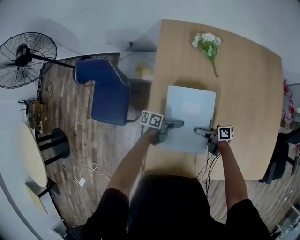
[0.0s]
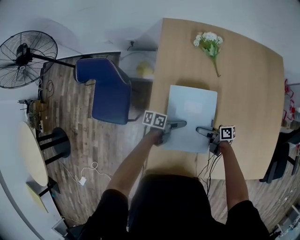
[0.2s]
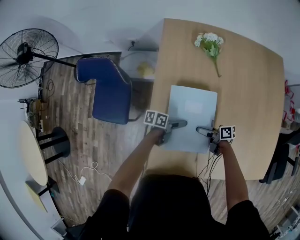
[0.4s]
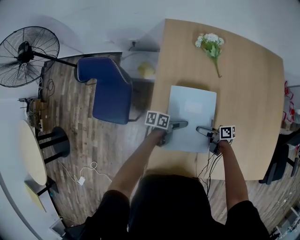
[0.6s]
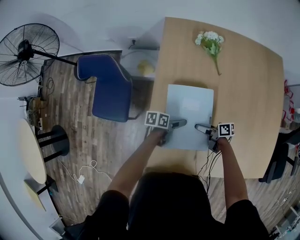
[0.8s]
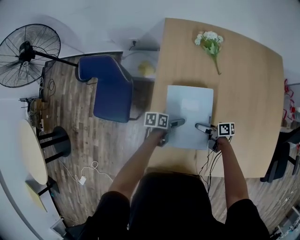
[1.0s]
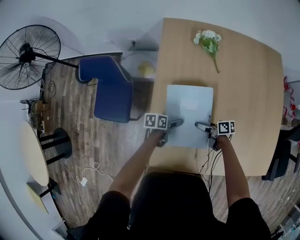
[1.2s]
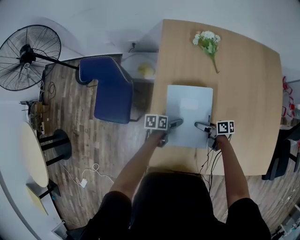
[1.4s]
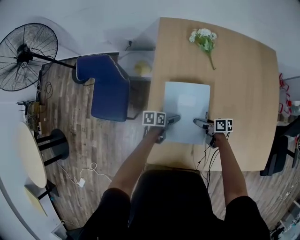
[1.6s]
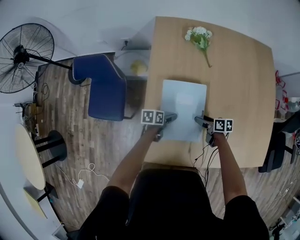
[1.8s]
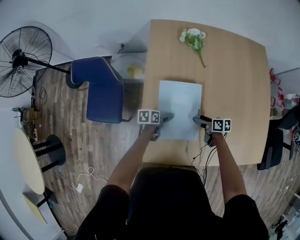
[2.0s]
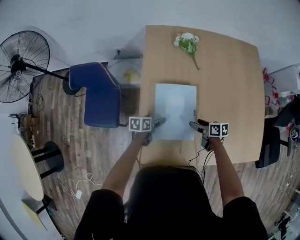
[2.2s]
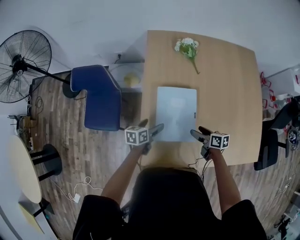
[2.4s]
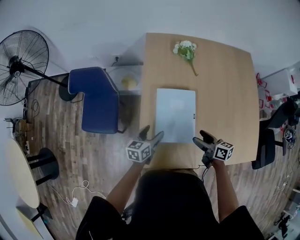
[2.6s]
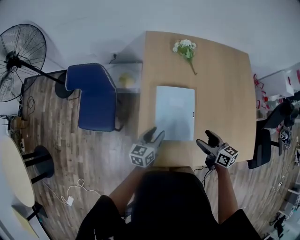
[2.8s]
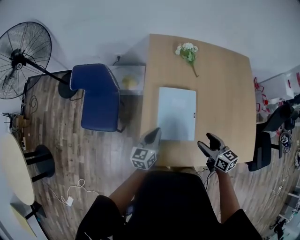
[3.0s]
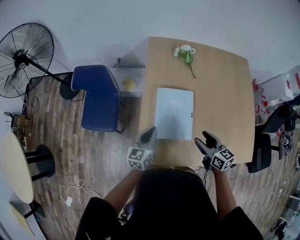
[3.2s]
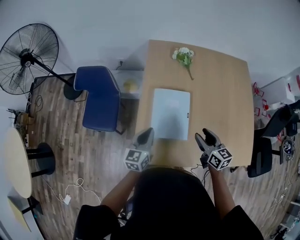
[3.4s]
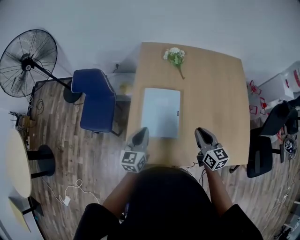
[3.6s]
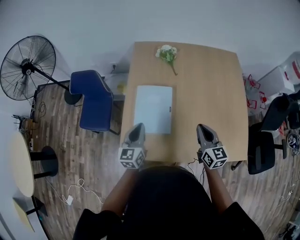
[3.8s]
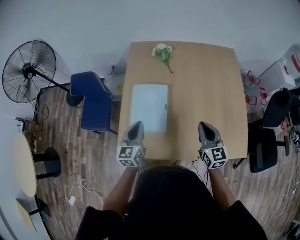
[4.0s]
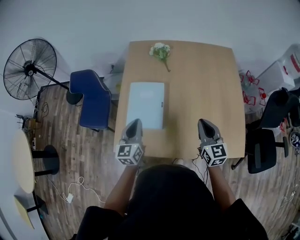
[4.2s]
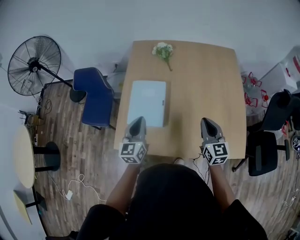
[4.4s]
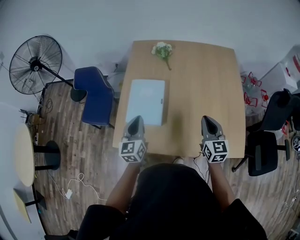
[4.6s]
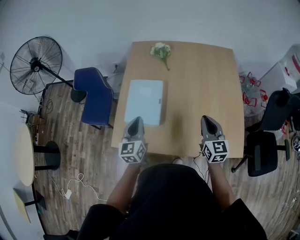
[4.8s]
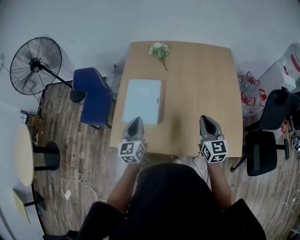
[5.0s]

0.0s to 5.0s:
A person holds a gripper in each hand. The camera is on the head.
0.0s to 1.6s: The right gripper turns by about 20 degrees; the left gripper ends up about 5 cm from where it was, and rotates approximately 30 degrees.
1.6s to 3.4s: The two grippers go roughly 25 cm upward. The right gripper changes its angle by roughly 50 degrees, and closes its fingers, while the left gripper rotates approximately 60 degrees, and closes its fingers.
3.4s to 5.0s: The left gripper moves to the right and backward, roughly 25 cm. The right gripper is displaced to the right by roughly 25 cm, turns by some 20 degrees, and closes up.

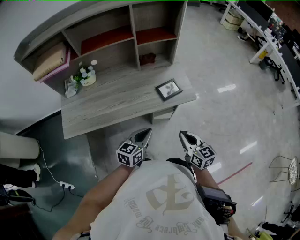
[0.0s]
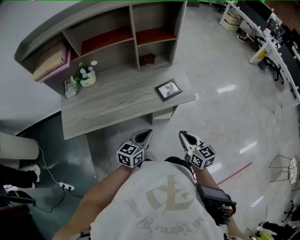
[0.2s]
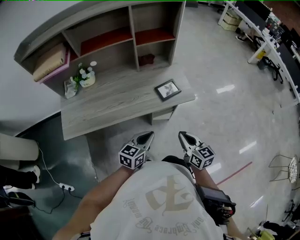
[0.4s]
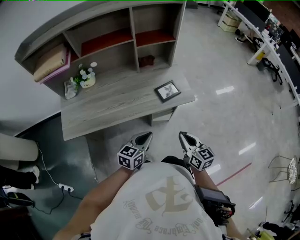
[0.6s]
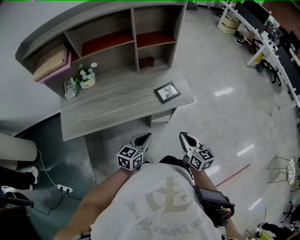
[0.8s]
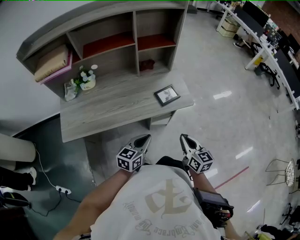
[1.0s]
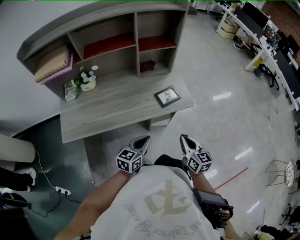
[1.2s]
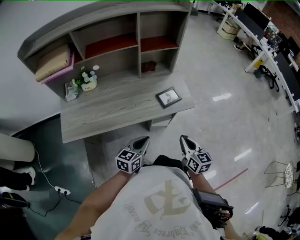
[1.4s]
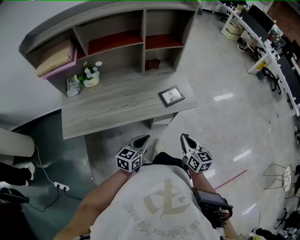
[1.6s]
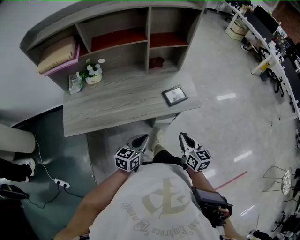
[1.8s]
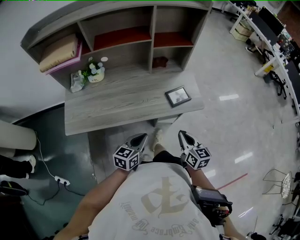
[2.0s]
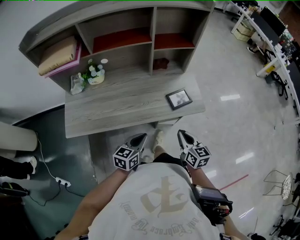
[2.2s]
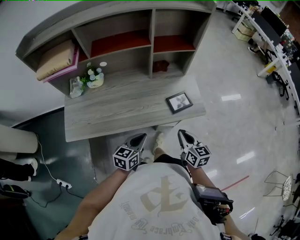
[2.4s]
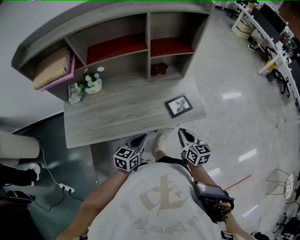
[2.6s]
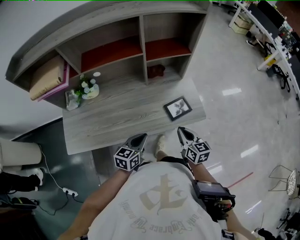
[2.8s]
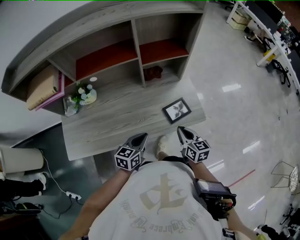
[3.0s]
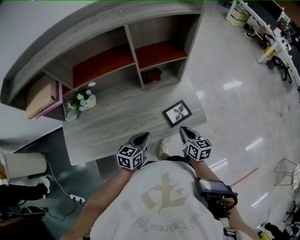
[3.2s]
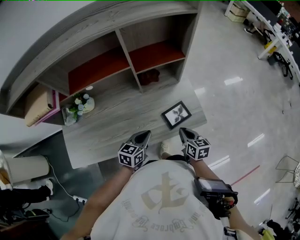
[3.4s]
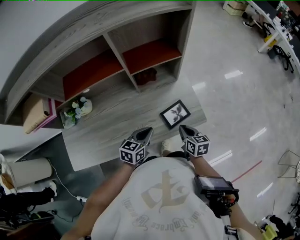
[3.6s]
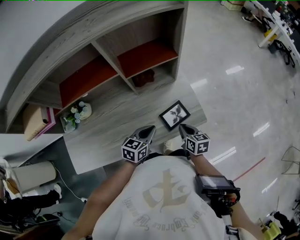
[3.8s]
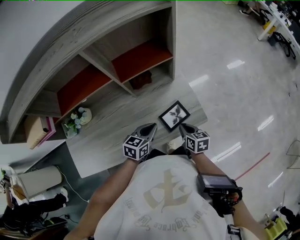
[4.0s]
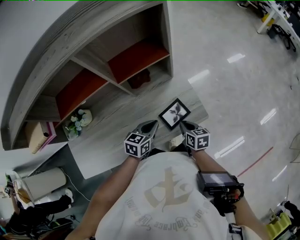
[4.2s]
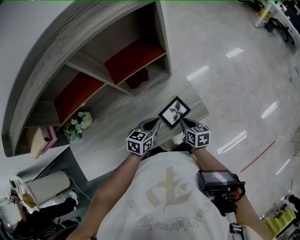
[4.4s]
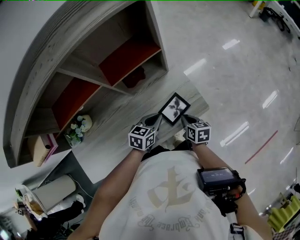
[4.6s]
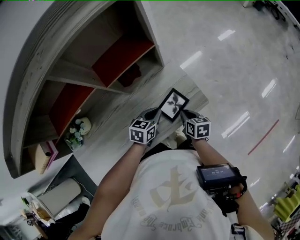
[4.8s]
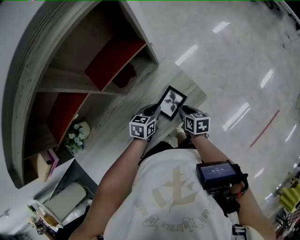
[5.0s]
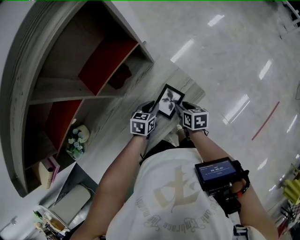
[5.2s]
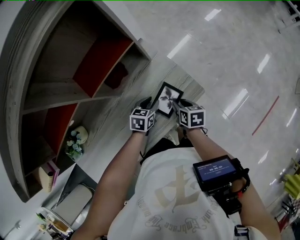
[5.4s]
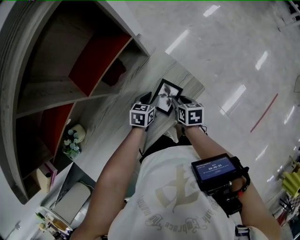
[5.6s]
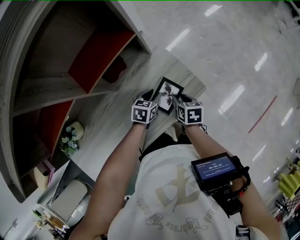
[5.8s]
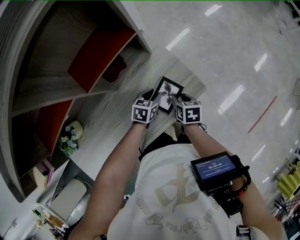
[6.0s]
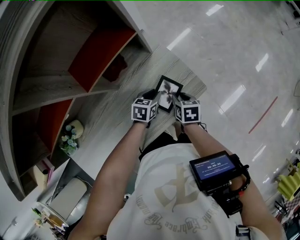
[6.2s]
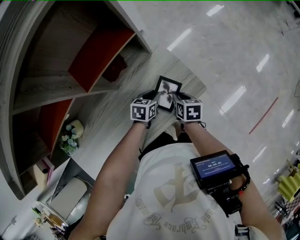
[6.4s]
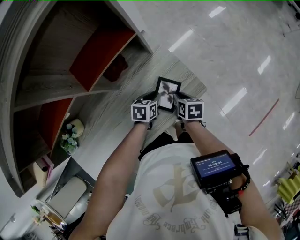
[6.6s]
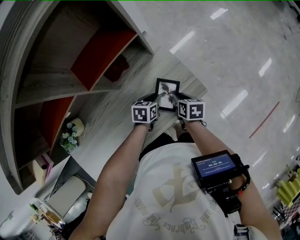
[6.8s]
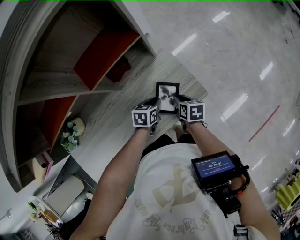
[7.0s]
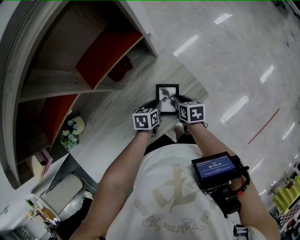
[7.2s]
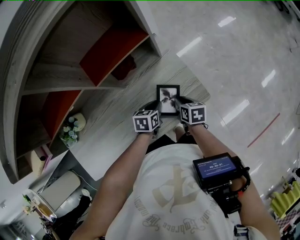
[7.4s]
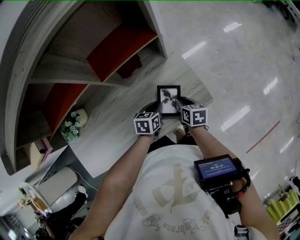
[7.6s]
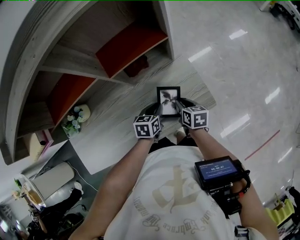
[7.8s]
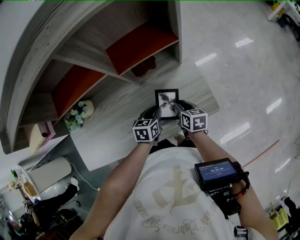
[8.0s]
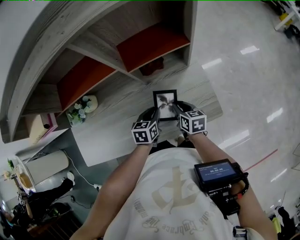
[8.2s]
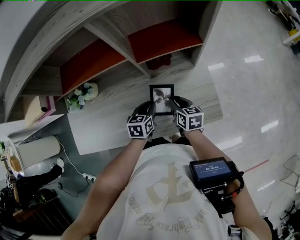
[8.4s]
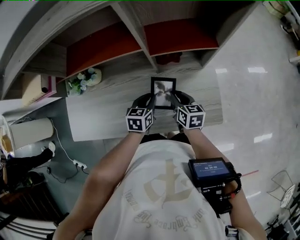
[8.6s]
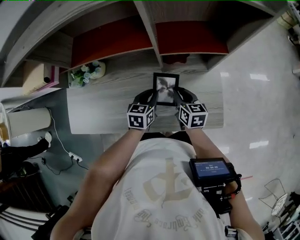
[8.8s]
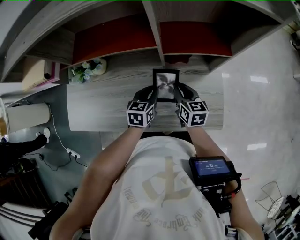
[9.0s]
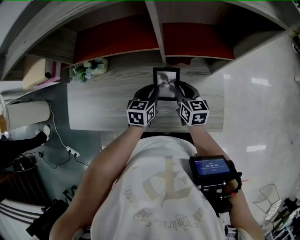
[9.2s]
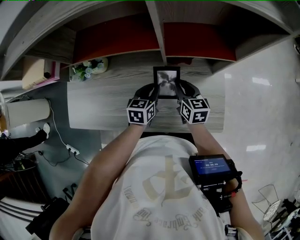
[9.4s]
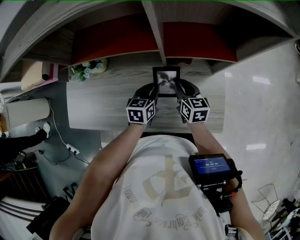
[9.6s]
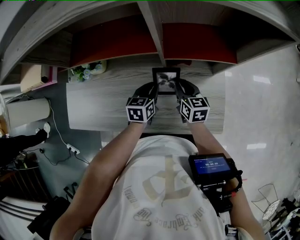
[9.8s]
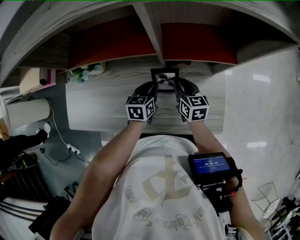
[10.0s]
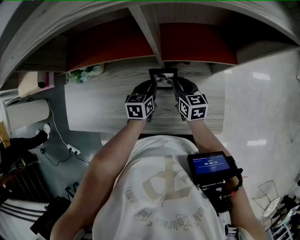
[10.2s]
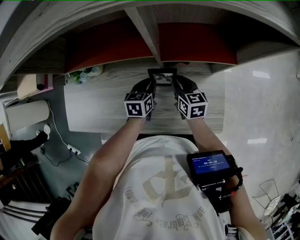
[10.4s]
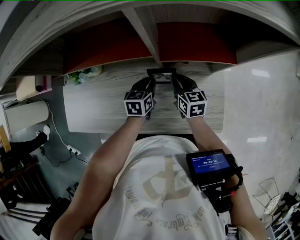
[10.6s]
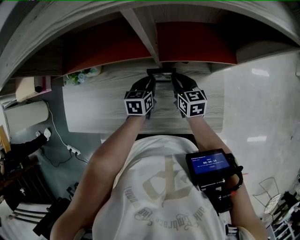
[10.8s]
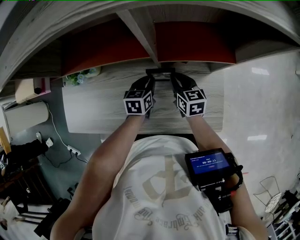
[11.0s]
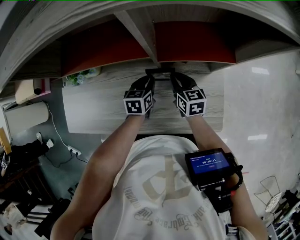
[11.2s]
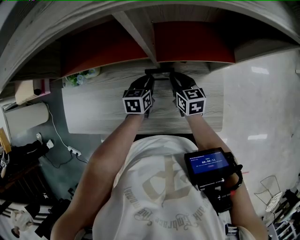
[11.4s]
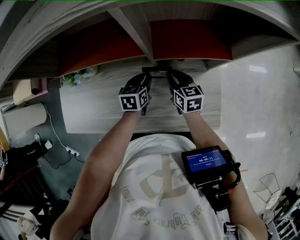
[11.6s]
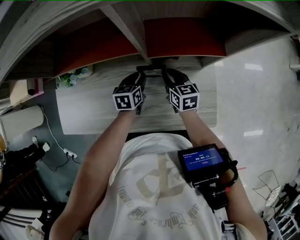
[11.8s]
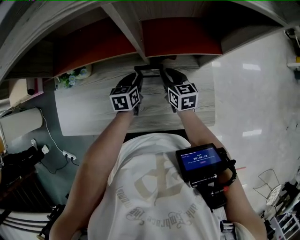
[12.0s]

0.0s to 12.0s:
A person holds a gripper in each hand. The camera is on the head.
0.0s to 1.6s: The grippers stay close to where they were, moving slightly.
1.6s to 3.0s: The grippers both shift forward by roughly 20 cm.
3.0s to 4.4s: The left gripper moves forward and to the right, approximately 20 cm. Meanwhile the right gripper goes some 15 cm downward, forward and to the right, and turns by roughly 20 degrees.
4.4s to 6.0s: The right gripper shifts approximately 5 cm downward, rotates roughly 20 degrees, and opens. The left gripper heads downward and forward, covering roughly 15 cm, rotates approximately 20 degrees, and opens its fingers.
6.0s to 7.6s: The left gripper moves roughly 5 cm, and rotates about 20 degrees.
7.6s to 9.0s: The left gripper shifts by roughly 20 cm, and changes its angle by approximately 30 degrees. The right gripper changes place by roughly 20 cm, and swivels roughly 40 degrees.
9.0s to 10.4s: Both grippers travel together forward, approximately 5 cm.
10.4s to 12.0s: There are only small adjustments of the grippers.

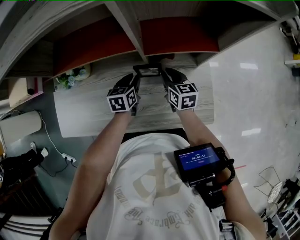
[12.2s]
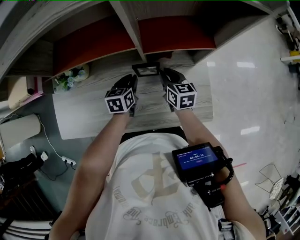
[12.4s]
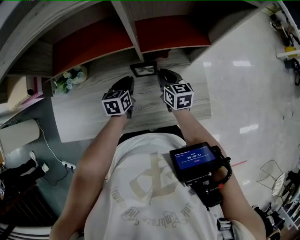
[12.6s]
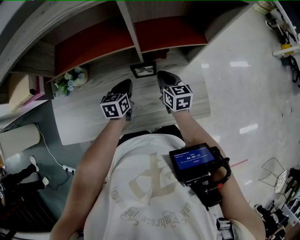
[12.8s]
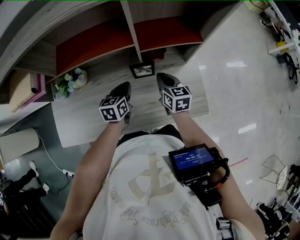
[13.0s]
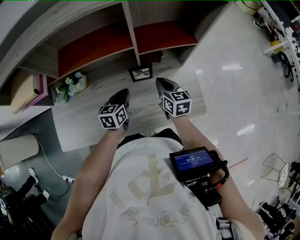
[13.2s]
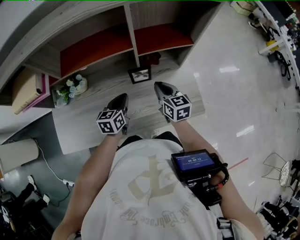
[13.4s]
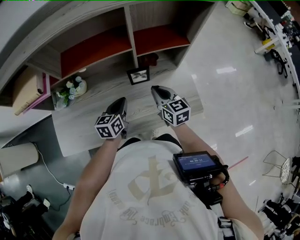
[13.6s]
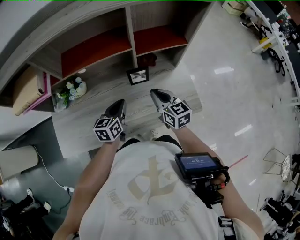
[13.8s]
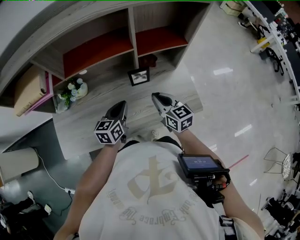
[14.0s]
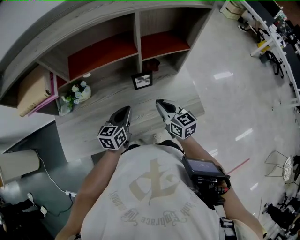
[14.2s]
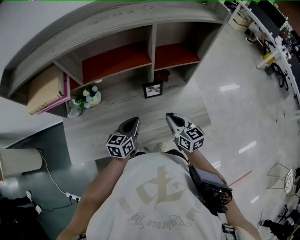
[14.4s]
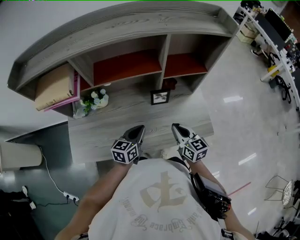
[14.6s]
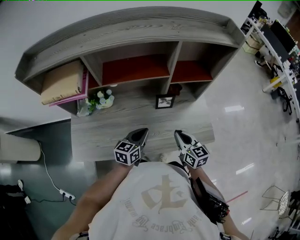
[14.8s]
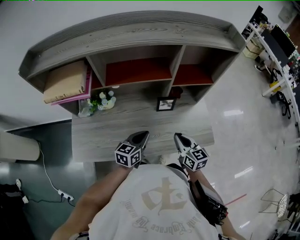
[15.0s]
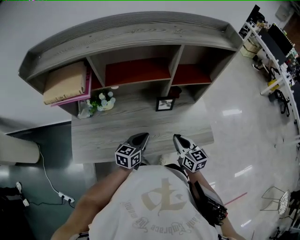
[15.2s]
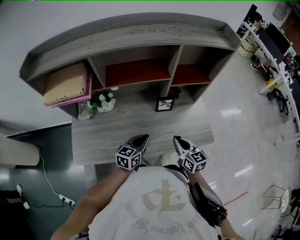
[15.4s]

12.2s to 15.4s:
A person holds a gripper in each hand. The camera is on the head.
12.2s to 13.8s: The grippers both shift backward and upward by roughly 20 cm. The right gripper closes up; the left gripper rotates approximately 20 degrees, and closes its fingers.
13.8s to 15.4s: The two grippers go approximately 10 cm backward.

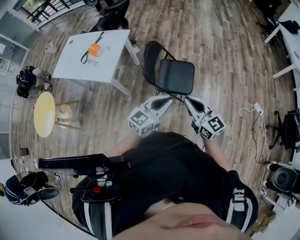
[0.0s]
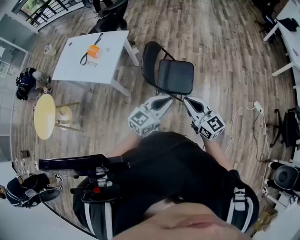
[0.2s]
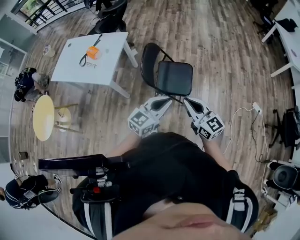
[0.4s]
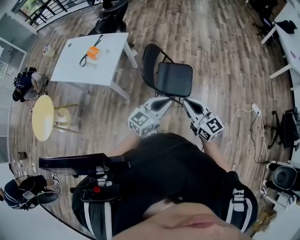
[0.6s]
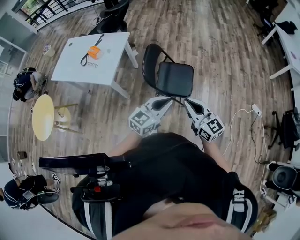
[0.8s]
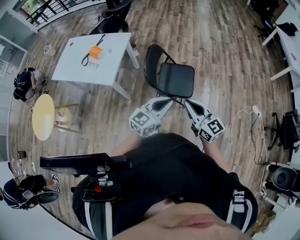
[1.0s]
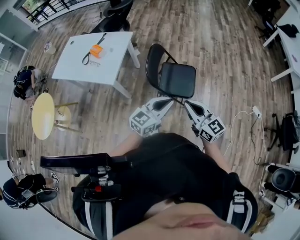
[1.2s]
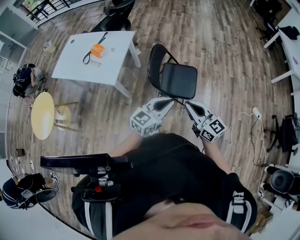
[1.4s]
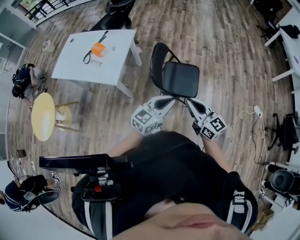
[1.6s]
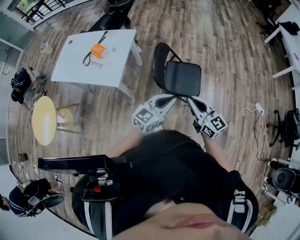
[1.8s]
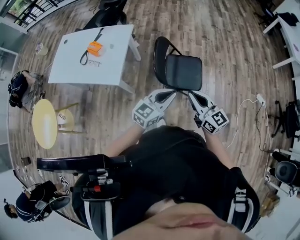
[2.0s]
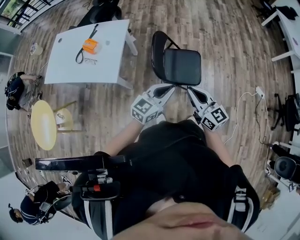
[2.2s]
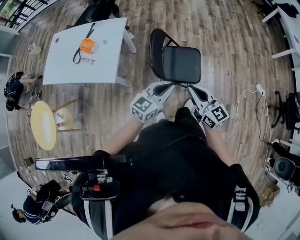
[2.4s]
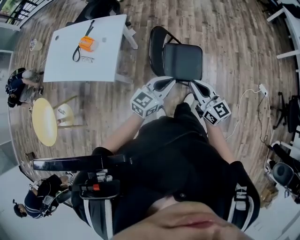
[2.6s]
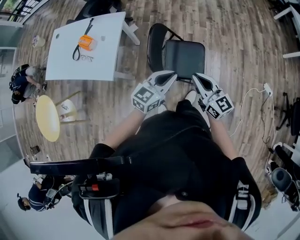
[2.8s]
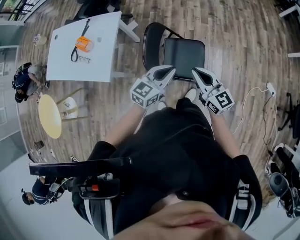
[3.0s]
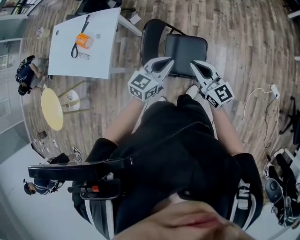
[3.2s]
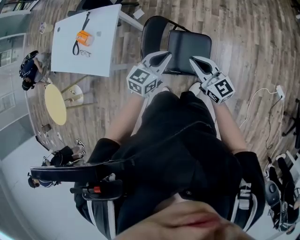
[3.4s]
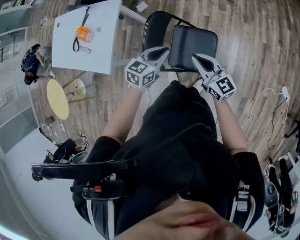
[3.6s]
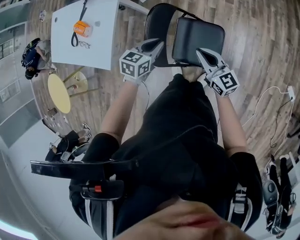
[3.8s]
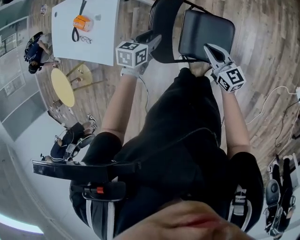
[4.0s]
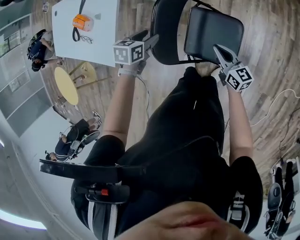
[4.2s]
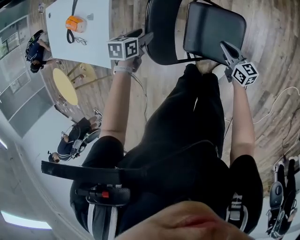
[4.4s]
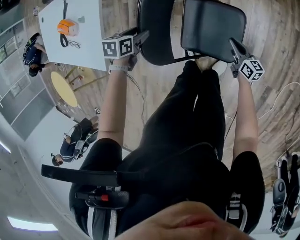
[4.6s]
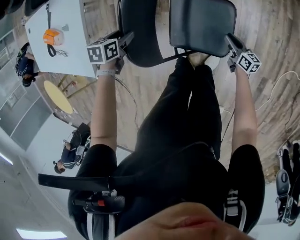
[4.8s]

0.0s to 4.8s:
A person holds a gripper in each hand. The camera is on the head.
0.0s to 1.6s: The two grippers go approximately 5 cm to the left.
1.6s to 3.2s: Both grippers move forward, approximately 25 cm.
3.2s to 4.8s: The right gripper heads downward, covering some 50 cm, and rotates around the line of its fingers by some 40 degrees, clockwise from behind. The left gripper travels downward, to the left and forward by roughly 40 cm, tilts its fingers some 50 degrees downward, and opens up.
